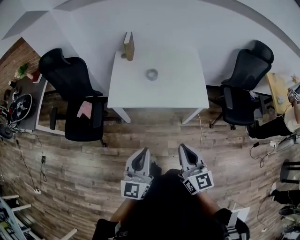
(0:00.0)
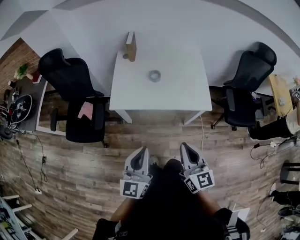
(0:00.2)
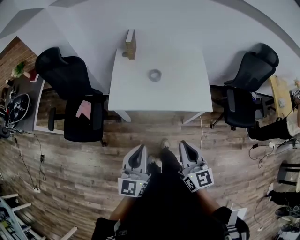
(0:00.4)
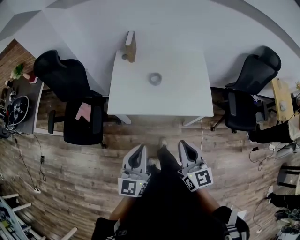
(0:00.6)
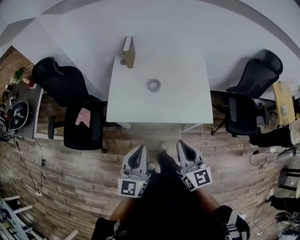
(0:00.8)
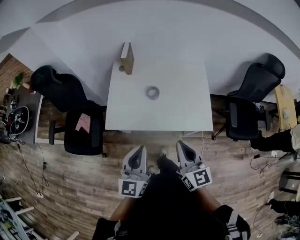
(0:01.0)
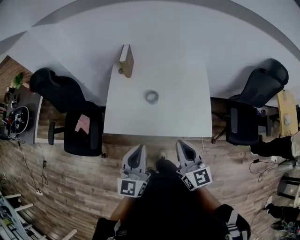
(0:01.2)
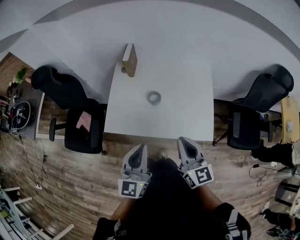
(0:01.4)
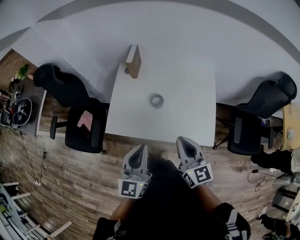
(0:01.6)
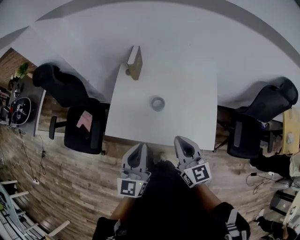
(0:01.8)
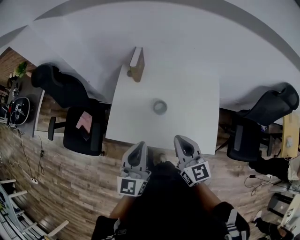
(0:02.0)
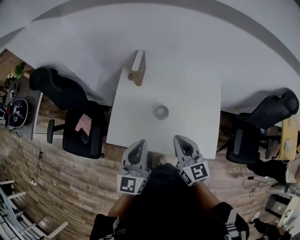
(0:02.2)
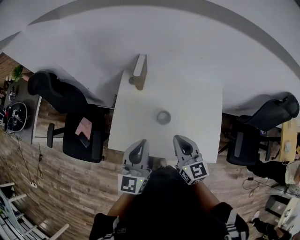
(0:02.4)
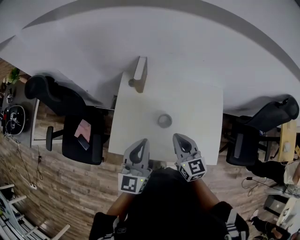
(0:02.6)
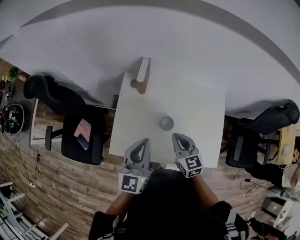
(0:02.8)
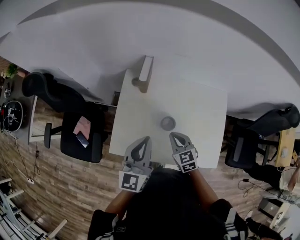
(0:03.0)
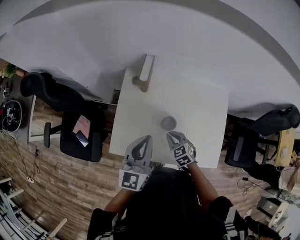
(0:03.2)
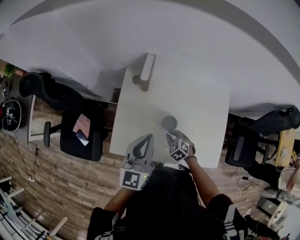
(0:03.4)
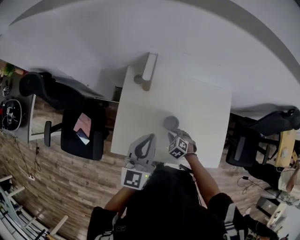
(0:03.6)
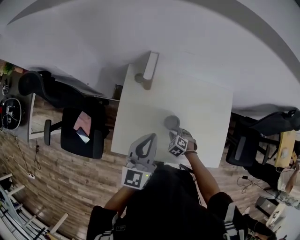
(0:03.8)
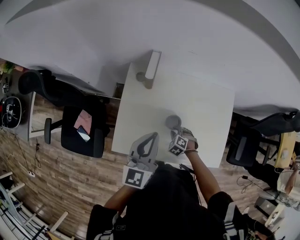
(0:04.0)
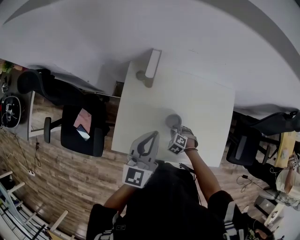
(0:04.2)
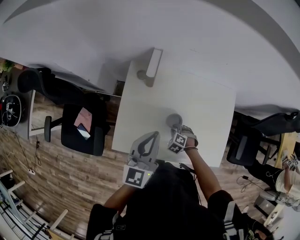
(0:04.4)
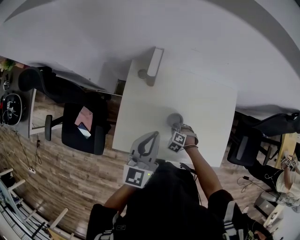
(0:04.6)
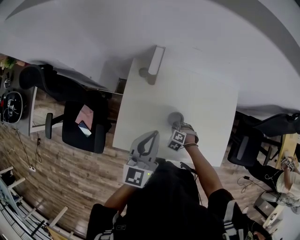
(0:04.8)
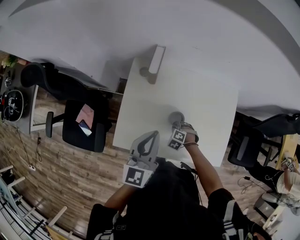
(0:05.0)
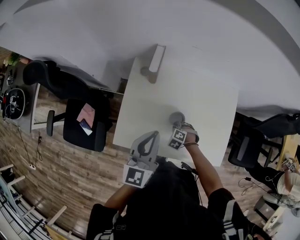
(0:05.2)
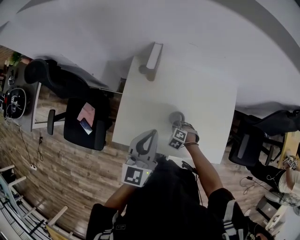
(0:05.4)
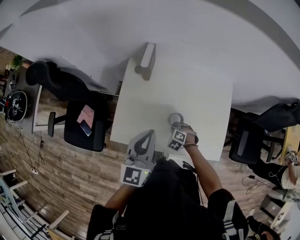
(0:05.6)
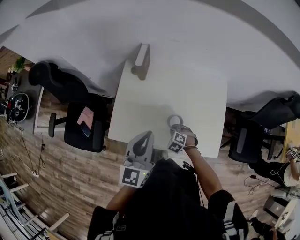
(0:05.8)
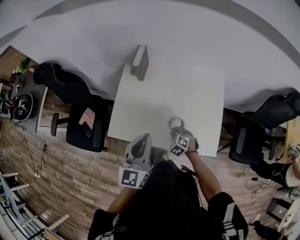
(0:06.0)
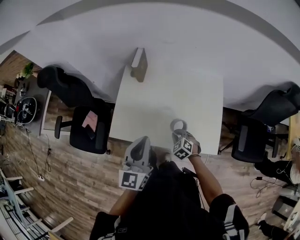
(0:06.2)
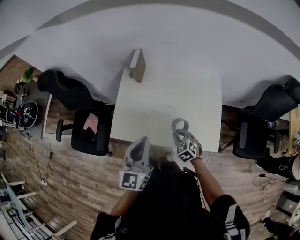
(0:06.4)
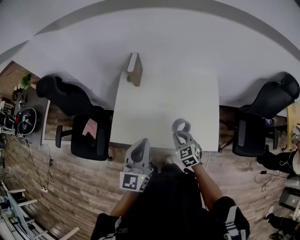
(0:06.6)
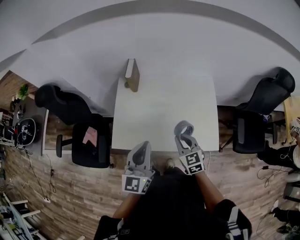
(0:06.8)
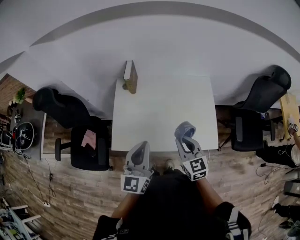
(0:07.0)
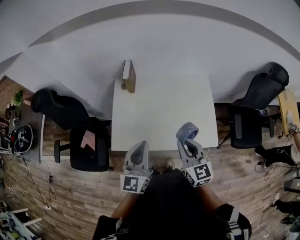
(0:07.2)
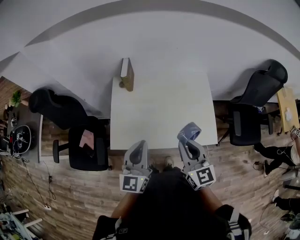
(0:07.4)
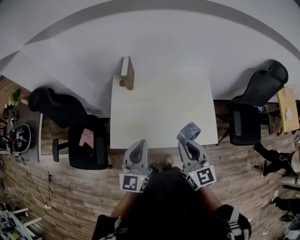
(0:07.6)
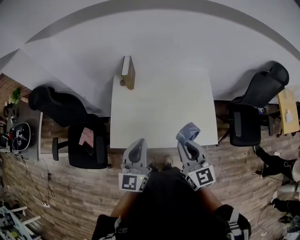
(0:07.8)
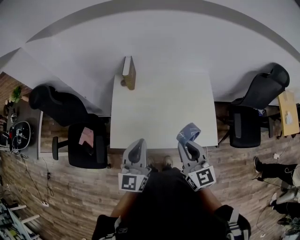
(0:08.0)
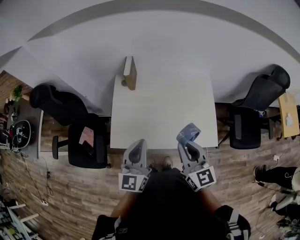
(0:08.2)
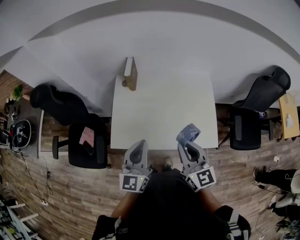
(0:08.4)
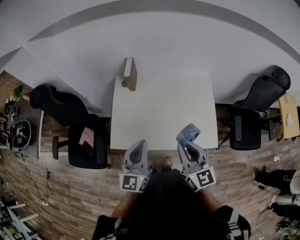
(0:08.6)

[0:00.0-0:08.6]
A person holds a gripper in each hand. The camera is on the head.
0:00.0 to 0:01.4: Both grippers move forward, roughly 30 cm.
0:01.4 to 0:02.8: The right gripper is displaced forward and downward by approximately 25 cm, and turns by approximately 20 degrees, while the left gripper moves forward, roughly 20 cm.
0:02.8 to 0:04.4: The right gripper heads downward, covering some 25 cm, and points its fingers some 50 degrees further downward; the left gripper shifts roughly 5 cm forward.
0:04.4 to 0:05.8: The right gripper moves roughly 10 cm. The left gripper ends up approximately 15 cm from where it was.
0:05.8 to 0:07.2: The left gripper heads backward, covering approximately 10 cm, while the right gripper moves upward, some 35 cm, and points its fingers some 50 degrees further upward.
0:07.2 to 0:08.6: The grippers make only small movements.

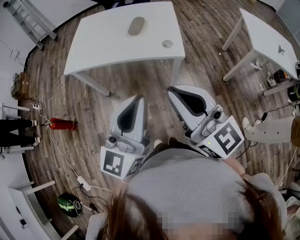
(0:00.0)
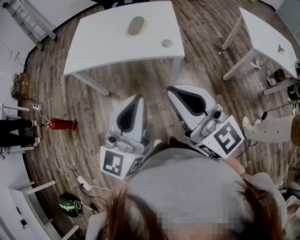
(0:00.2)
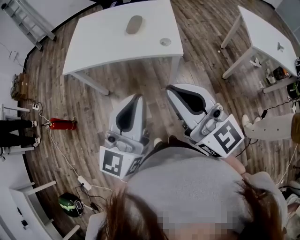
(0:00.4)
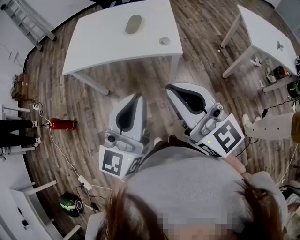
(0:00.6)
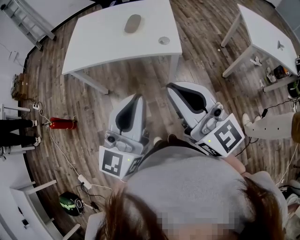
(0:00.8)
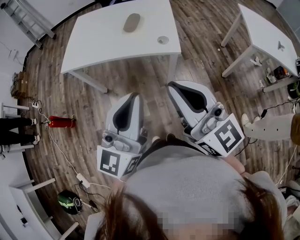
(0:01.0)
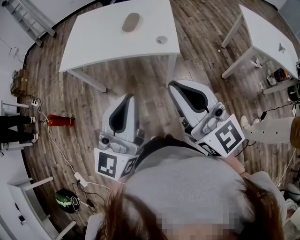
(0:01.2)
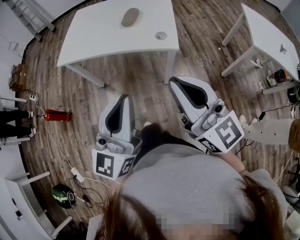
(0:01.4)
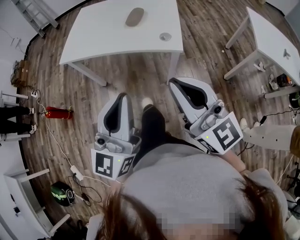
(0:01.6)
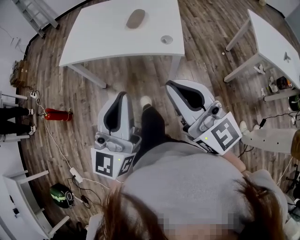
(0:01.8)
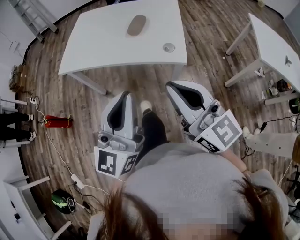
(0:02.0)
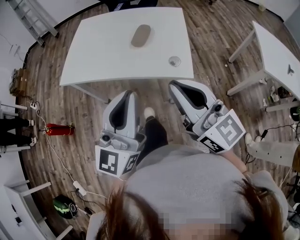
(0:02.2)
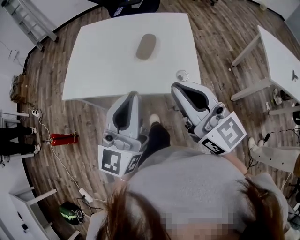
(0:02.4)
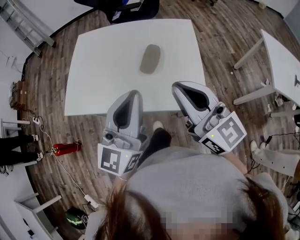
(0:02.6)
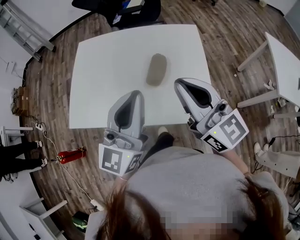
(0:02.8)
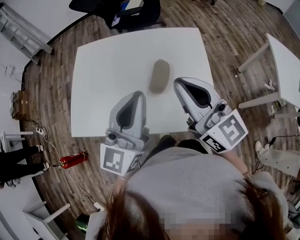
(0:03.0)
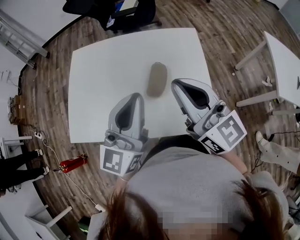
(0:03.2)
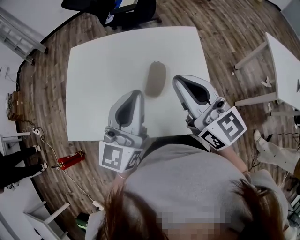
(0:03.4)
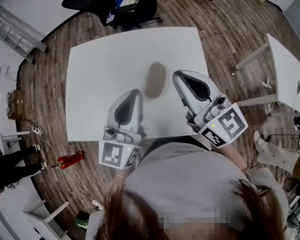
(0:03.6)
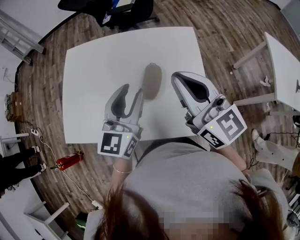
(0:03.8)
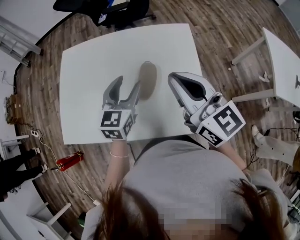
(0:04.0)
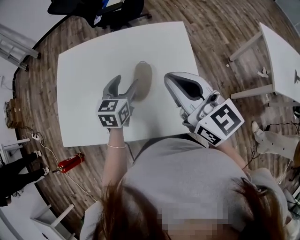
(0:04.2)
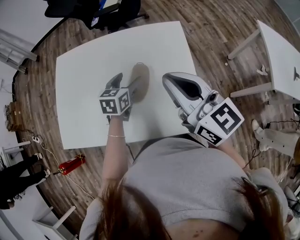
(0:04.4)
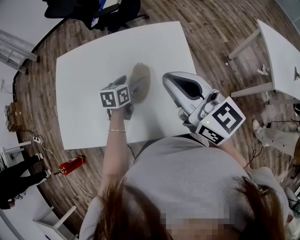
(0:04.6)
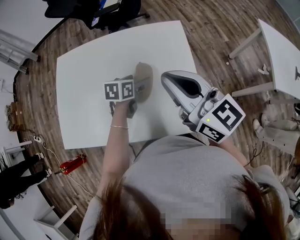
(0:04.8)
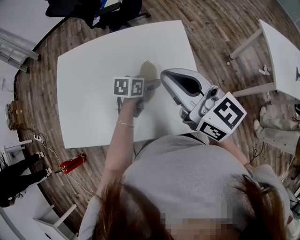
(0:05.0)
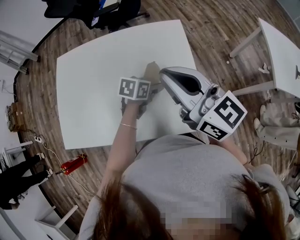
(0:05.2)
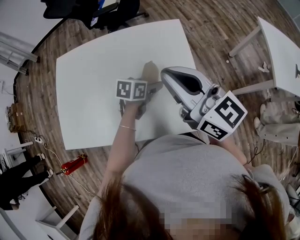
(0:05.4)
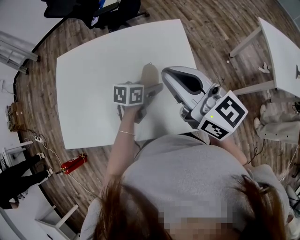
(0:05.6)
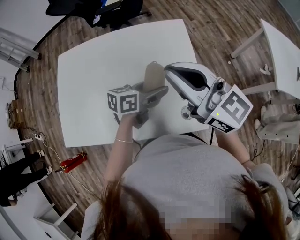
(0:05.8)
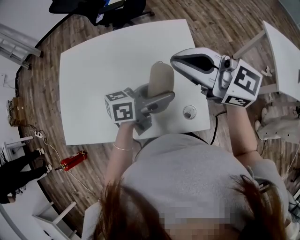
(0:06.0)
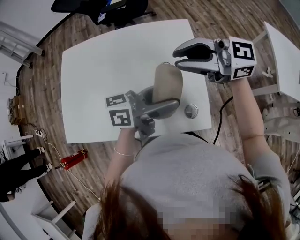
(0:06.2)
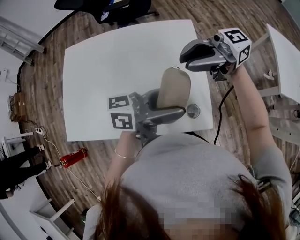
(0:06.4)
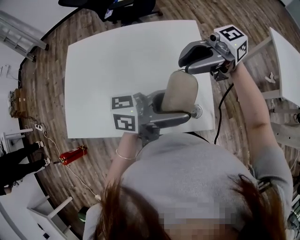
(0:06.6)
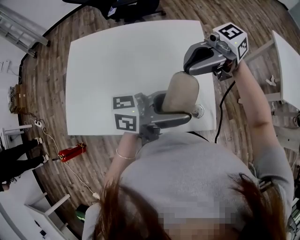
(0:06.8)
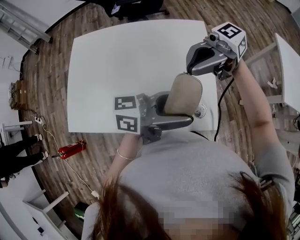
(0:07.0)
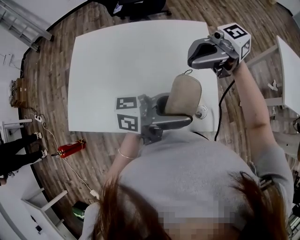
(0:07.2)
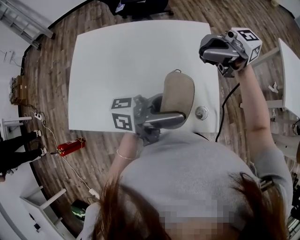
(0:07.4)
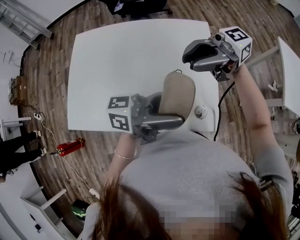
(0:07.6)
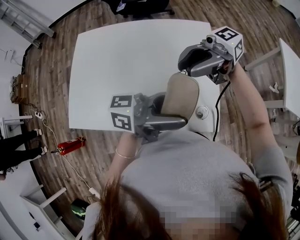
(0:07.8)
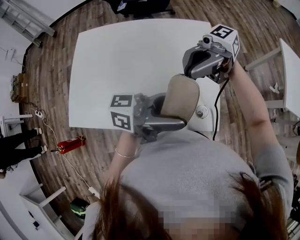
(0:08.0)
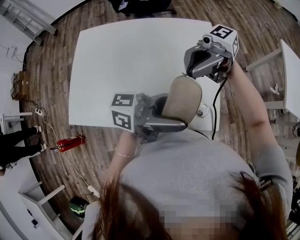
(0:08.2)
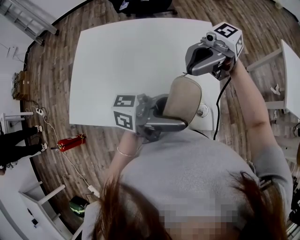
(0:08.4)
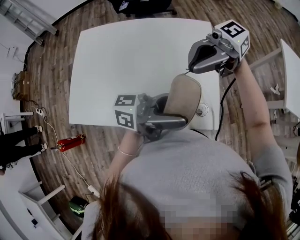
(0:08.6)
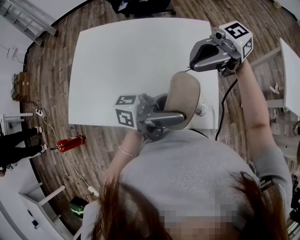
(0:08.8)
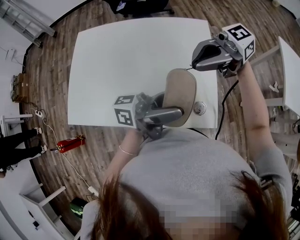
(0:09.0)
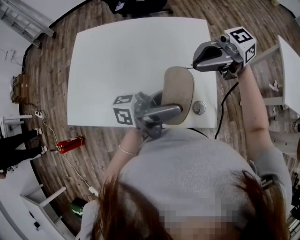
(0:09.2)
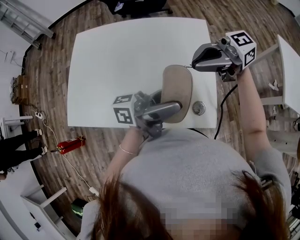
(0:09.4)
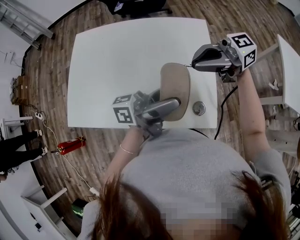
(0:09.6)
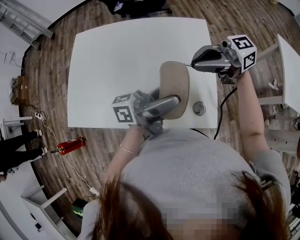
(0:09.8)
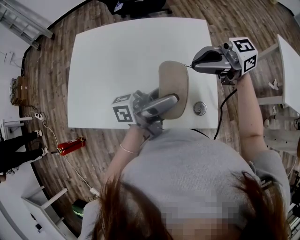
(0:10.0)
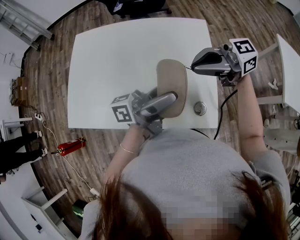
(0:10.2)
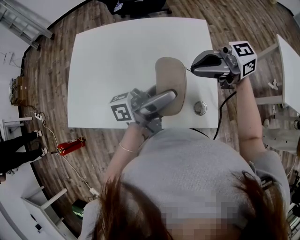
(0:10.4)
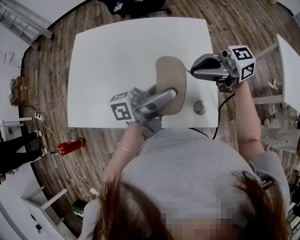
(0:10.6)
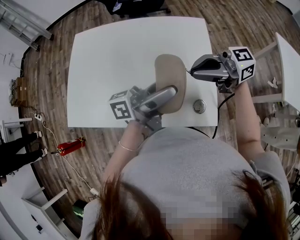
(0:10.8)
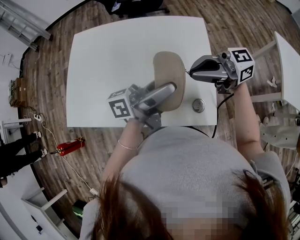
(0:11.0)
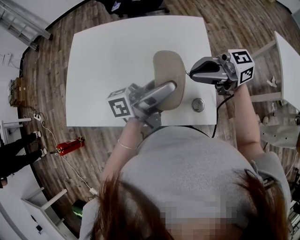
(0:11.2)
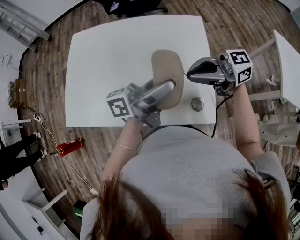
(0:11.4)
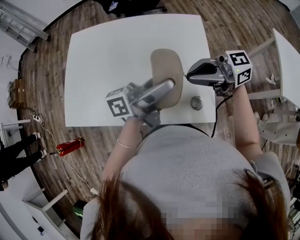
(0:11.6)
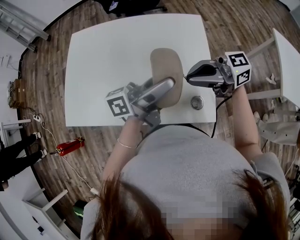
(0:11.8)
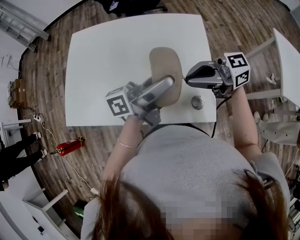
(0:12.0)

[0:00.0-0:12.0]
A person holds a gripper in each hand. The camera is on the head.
0:00.0 to 0:01.6: The right gripper shifts by about 5 cm.
0:01.6 to 0:03.0: Both grippers are carried forward, roughly 40 cm.
0:03.0 to 0:04.4: The left gripper is displaced downward and forward by roughly 30 cm, points its fingers approximately 50 degrees further downward, and opens. The right gripper moves to the right and forward, roughly 10 cm.
0:04.4 to 0:06.0: The left gripper shifts by about 20 cm, and angles its fingers upward, by approximately 30 degrees, while the right gripper turns by some 30 degrees.
0:06.0 to 0:07.6: The right gripper rotates some 60 degrees, while the left gripper heads upward, covering roughly 10 cm, and changes its angle by about 30 degrees.
0:09.0 to 0:10.4: The left gripper ends up some 5 cm from where it was.
0:10.4 to 0:12.0: The right gripper moves roughly 5 cm.

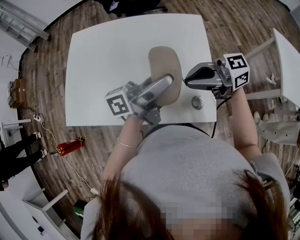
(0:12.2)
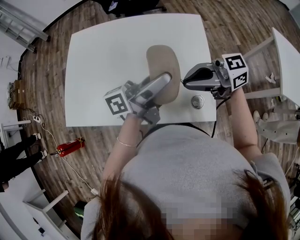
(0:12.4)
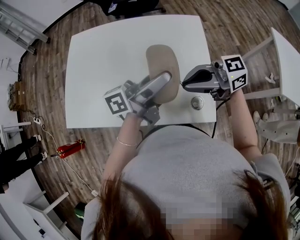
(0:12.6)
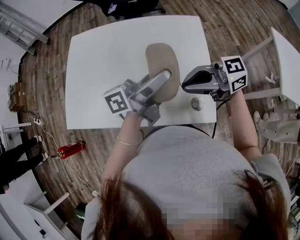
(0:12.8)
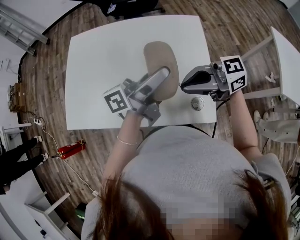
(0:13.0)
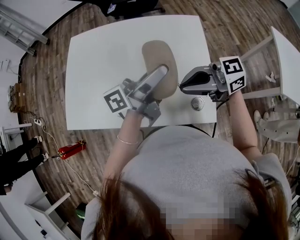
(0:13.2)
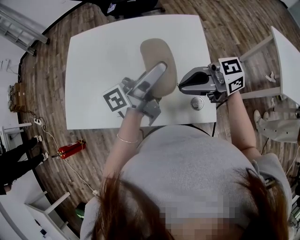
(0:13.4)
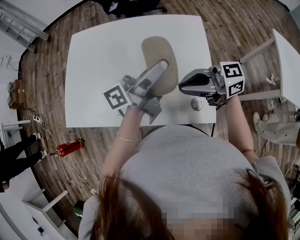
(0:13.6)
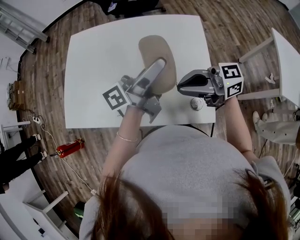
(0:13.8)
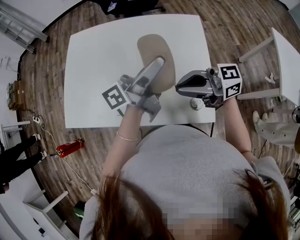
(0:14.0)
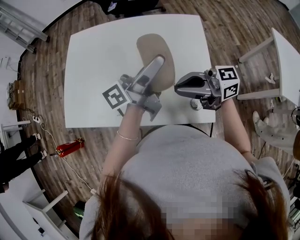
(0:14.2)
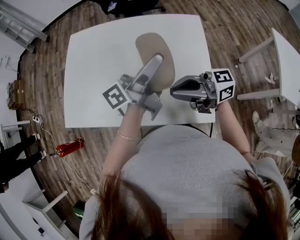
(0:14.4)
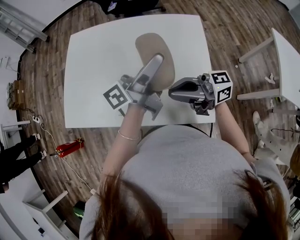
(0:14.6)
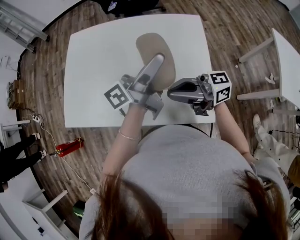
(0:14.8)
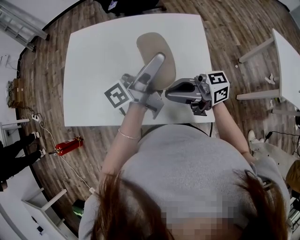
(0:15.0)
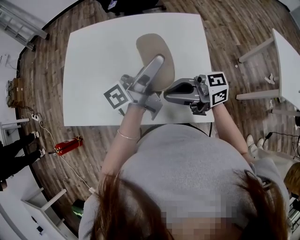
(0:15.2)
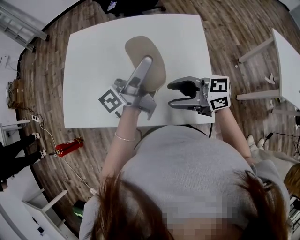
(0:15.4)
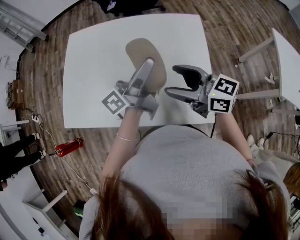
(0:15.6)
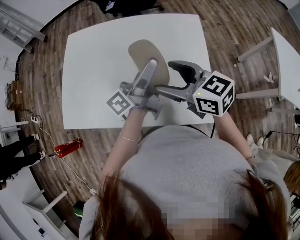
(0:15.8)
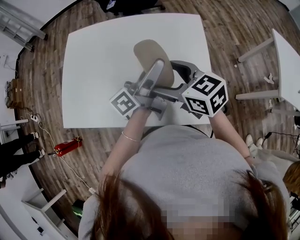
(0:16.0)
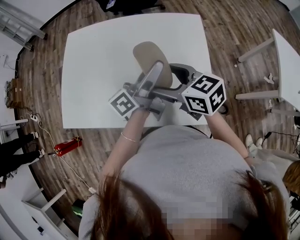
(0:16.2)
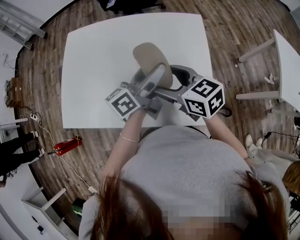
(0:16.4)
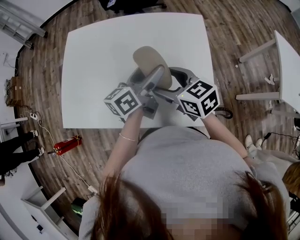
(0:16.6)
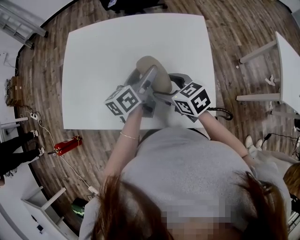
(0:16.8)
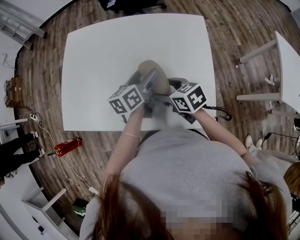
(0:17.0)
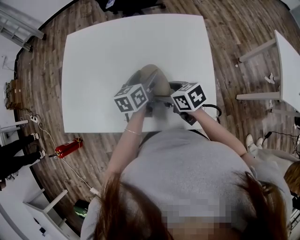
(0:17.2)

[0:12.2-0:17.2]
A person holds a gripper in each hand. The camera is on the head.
0:12.2 to 0:13.8: The grippers move only a little.
0:13.8 to 0:15.6: The right gripper changes its angle by about 30 degrees, and opens up.
0:15.6 to 0:17.2: The grippers both shift downward by about 15 cm. The left gripper points its fingers some 50 degrees further downward. The right gripper tilts its fingers some 30 degrees downward.
